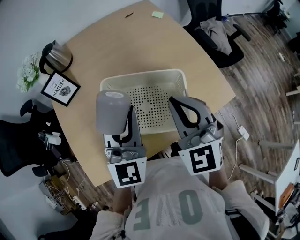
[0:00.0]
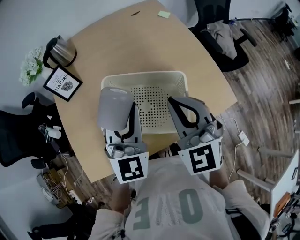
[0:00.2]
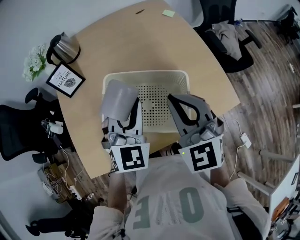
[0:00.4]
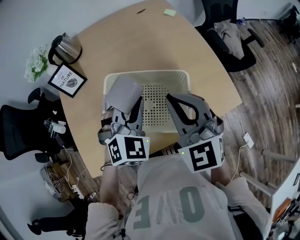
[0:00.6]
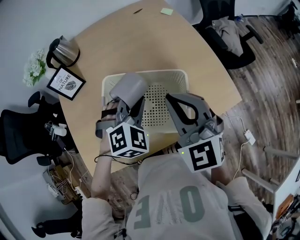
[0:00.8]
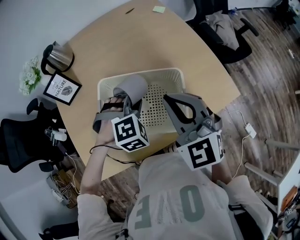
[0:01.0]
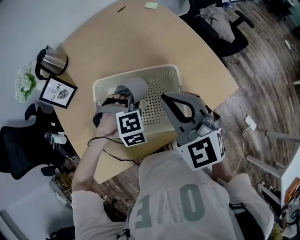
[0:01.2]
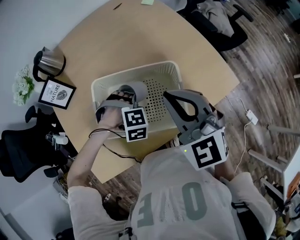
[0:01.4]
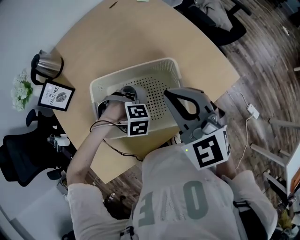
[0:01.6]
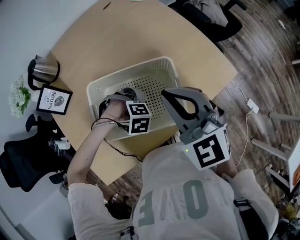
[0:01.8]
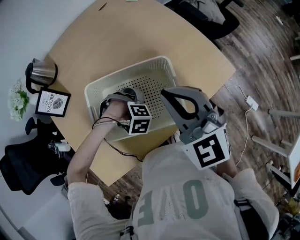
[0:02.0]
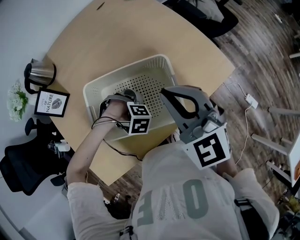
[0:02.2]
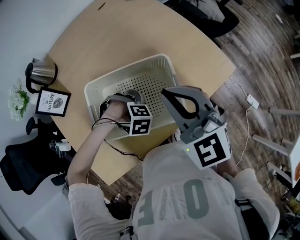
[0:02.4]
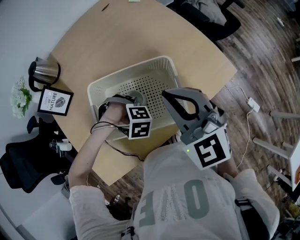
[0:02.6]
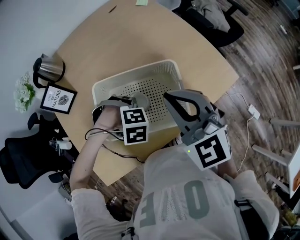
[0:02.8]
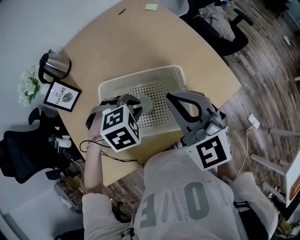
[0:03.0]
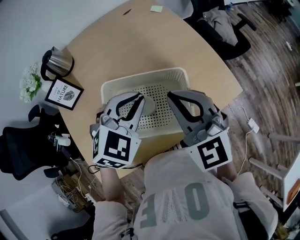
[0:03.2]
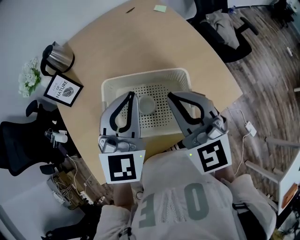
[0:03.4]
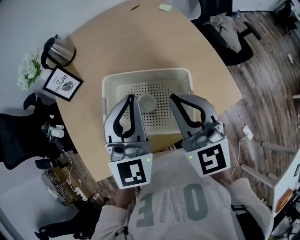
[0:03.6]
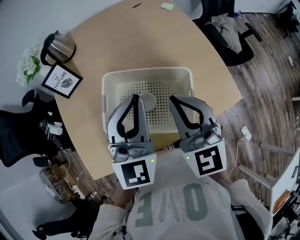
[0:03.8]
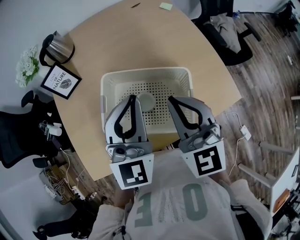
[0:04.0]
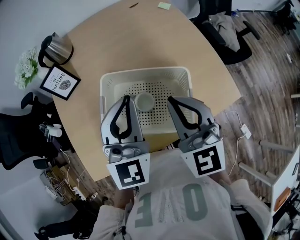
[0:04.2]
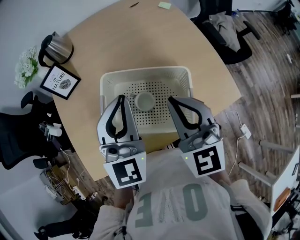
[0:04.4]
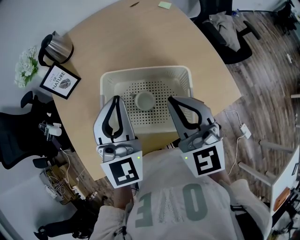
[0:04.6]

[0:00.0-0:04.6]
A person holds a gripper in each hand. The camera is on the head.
0:00.0 to 0:01.6: The left gripper travels downward by approximately 25 cm, and tips its fingers downward by some 80 degrees.
0:01.6 to 0:03.0: The left gripper shifts roughly 15 cm upward, and changes its angle by roughly 30 degrees.
0:03.0 to 0:04.6: The left gripper moves upward, some 15 cm, and points its fingers about 70 degrees further upward.

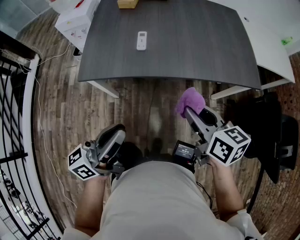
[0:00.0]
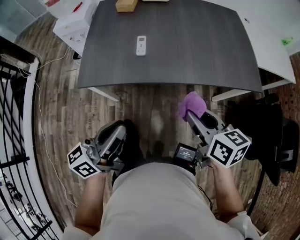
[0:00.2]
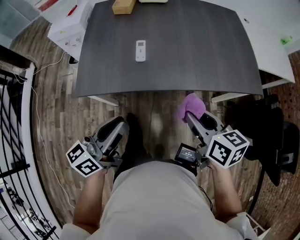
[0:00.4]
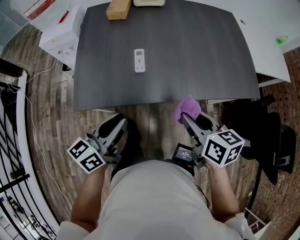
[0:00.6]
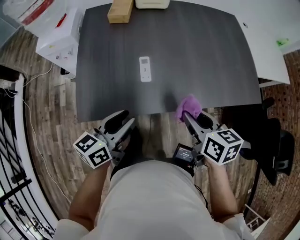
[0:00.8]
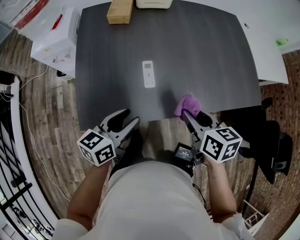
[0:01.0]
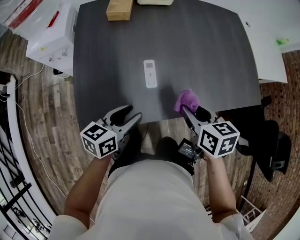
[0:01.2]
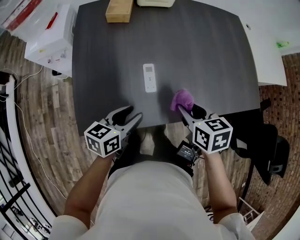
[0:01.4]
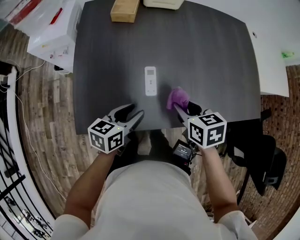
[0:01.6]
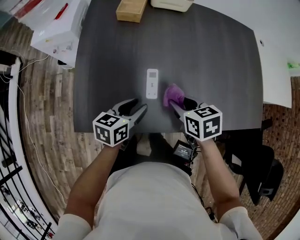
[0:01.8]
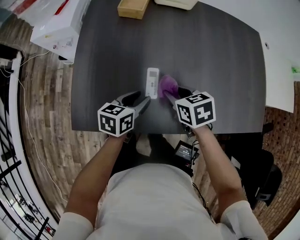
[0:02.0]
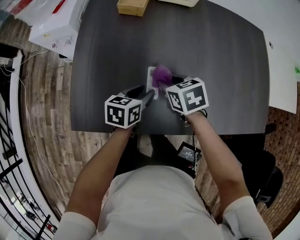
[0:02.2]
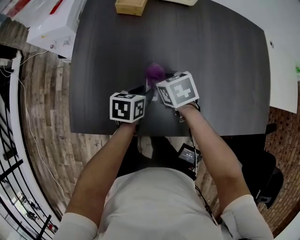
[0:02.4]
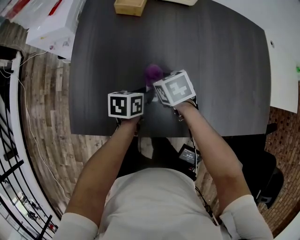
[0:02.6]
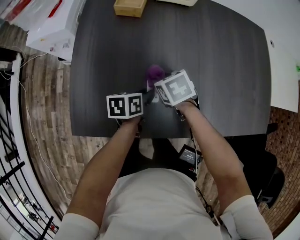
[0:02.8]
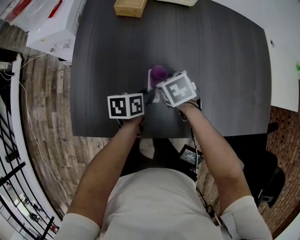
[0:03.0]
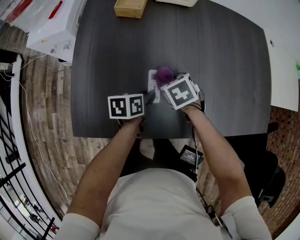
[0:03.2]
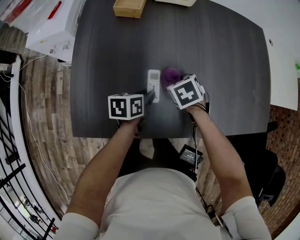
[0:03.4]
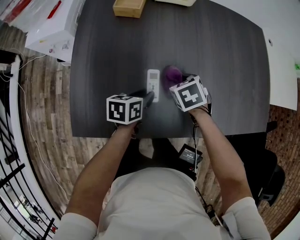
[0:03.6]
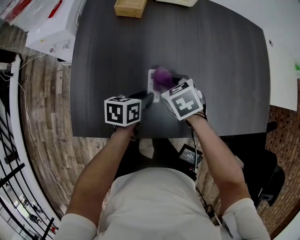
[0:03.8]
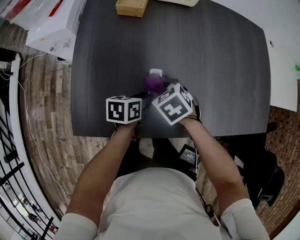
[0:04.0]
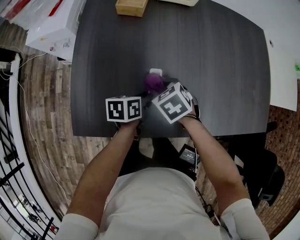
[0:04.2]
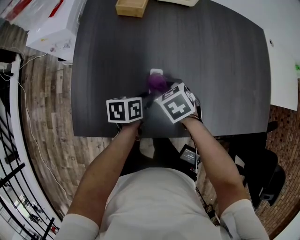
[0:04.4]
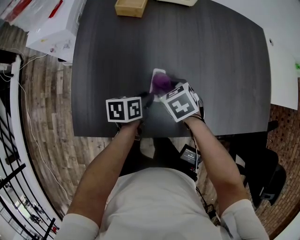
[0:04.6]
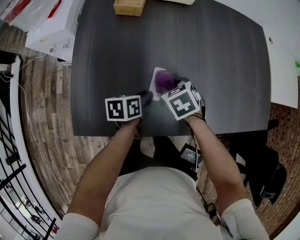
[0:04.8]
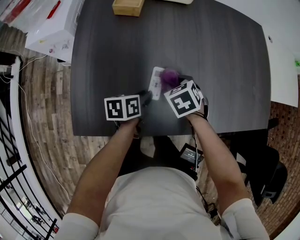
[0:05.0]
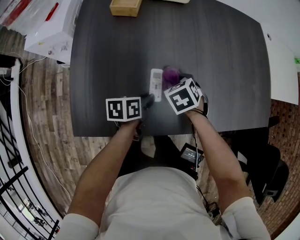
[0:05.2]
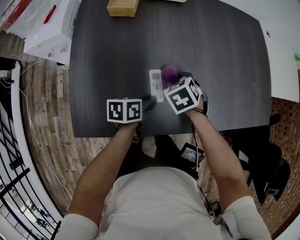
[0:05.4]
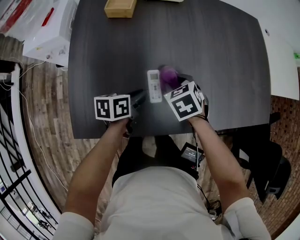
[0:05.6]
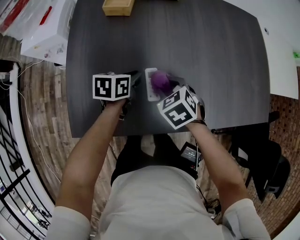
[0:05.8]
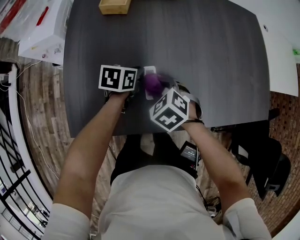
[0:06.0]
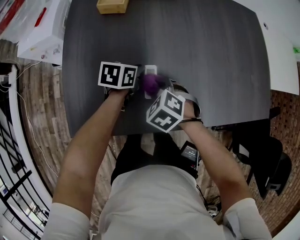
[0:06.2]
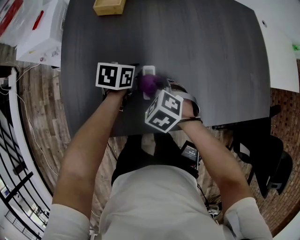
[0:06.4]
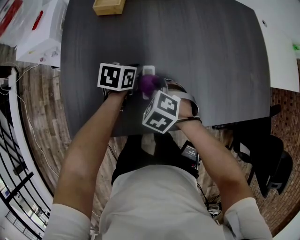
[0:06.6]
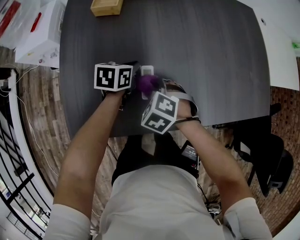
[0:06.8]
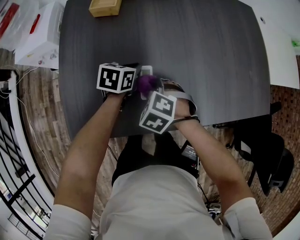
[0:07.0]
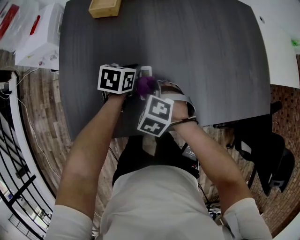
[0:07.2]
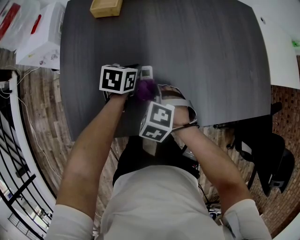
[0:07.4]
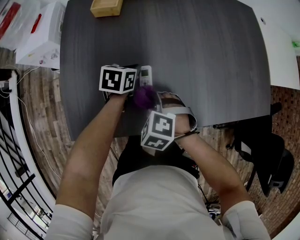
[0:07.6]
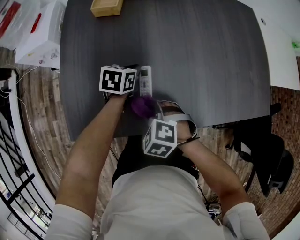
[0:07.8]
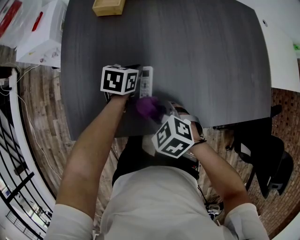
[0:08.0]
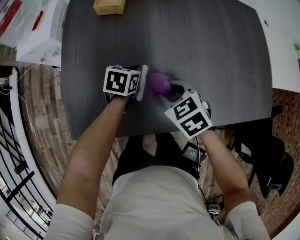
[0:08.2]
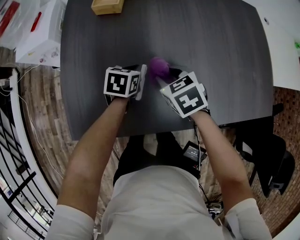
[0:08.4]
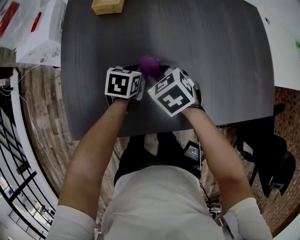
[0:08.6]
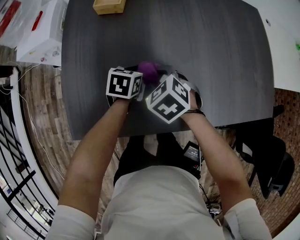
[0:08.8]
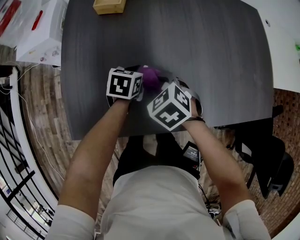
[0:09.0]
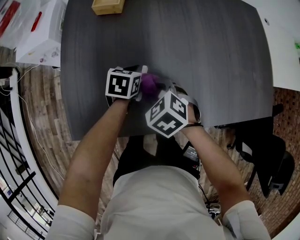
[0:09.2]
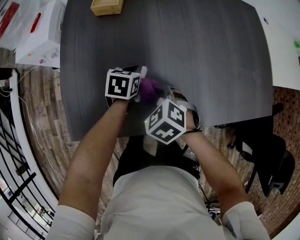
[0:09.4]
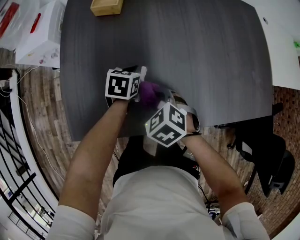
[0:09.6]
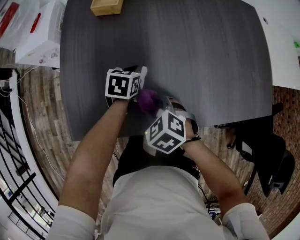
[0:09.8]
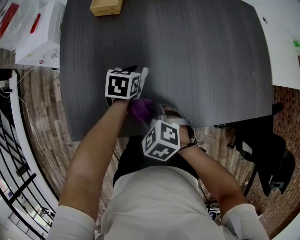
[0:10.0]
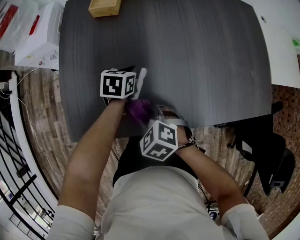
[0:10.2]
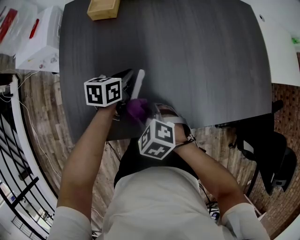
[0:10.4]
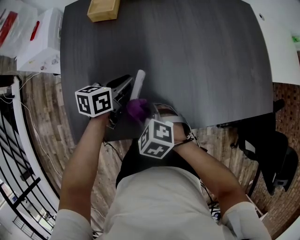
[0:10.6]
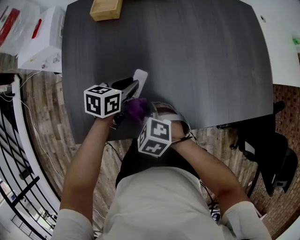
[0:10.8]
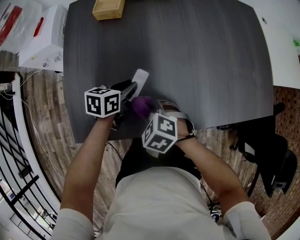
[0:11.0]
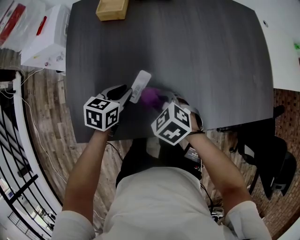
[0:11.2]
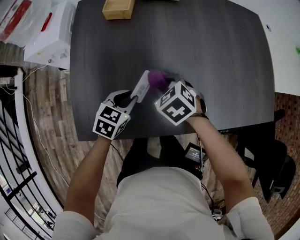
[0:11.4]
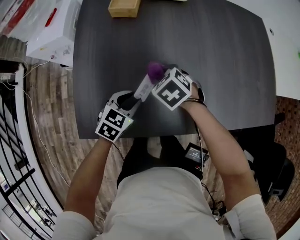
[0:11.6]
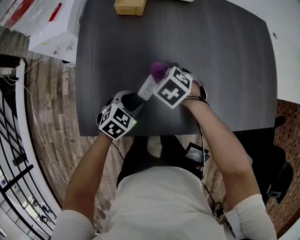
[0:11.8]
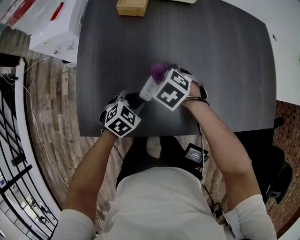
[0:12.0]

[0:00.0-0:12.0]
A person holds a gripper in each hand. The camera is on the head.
0:00.0 to 0:01.6: The right gripper heads forward, to the left and downward, covering approximately 30 cm, and turns by some 30 degrees. Meanwhile the left gripper shifts some 35 cm forward and downward, tips its fingers downward by roughly 40 degrees, and opens.
0:01.6 to 0:03.0: The left gripper travels forward and downward by about 15 cm, and swivels approximately 30 degrees. The right gripper travels forward, downward and to the left by roughly 20 cm, and turns by roughly 30 degrees.
0:04.4 to 0:06.0: The left gripper shifts approximately 10 cm forward, and changes its angle by some 20 degrees.
0:06.0 to 0:07.6: The right gripper shifts approximately 5 cm backward.
0:07.6 to 0:09.0: The right gripper shifts approximately 5 cm forward, and turns by approximately 20 degrees.
0:09.0 to 0:10.4: The right gripper shifts roughly 10 cm backward.
0:10.4 to 0:12.0: The left gripper travels backward by about 10 cm, twists approximately 40 degrees clockwise, seen from behind, and opens up. Meanwhile the right gripper heads forward, covering roughly 15 cm.

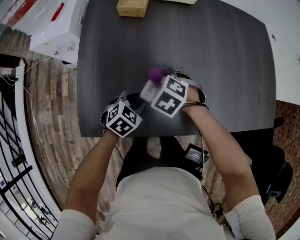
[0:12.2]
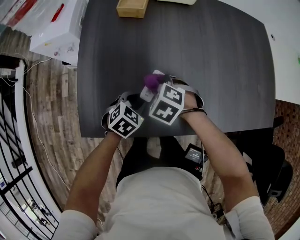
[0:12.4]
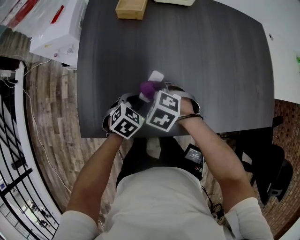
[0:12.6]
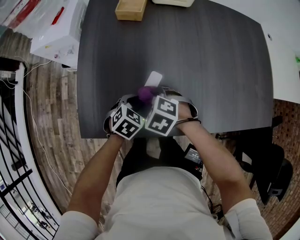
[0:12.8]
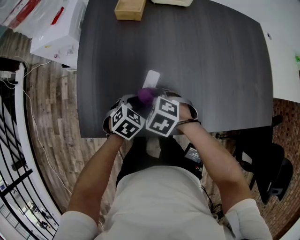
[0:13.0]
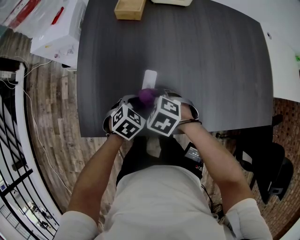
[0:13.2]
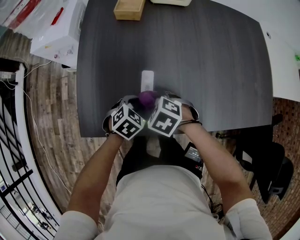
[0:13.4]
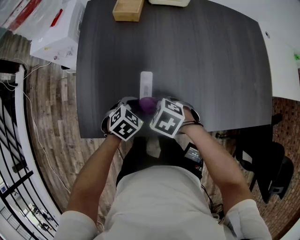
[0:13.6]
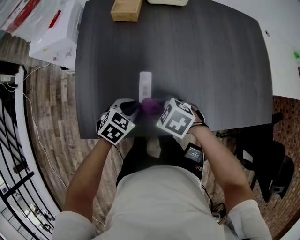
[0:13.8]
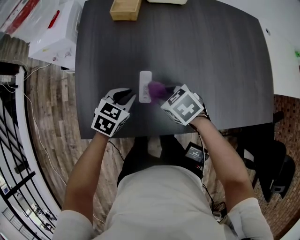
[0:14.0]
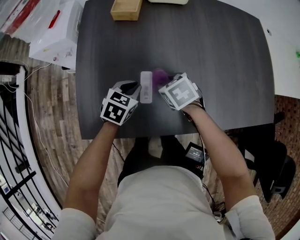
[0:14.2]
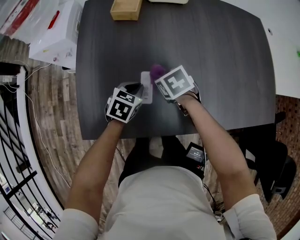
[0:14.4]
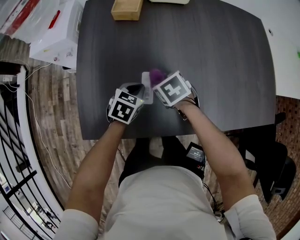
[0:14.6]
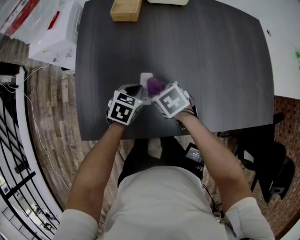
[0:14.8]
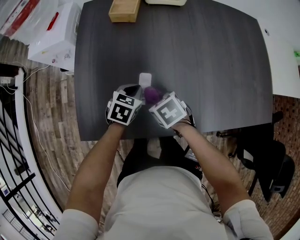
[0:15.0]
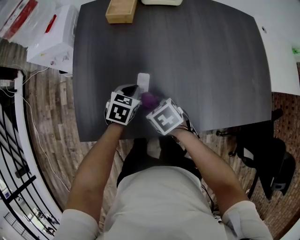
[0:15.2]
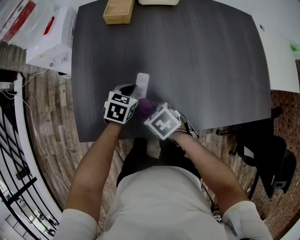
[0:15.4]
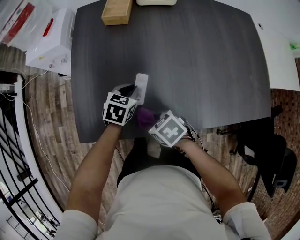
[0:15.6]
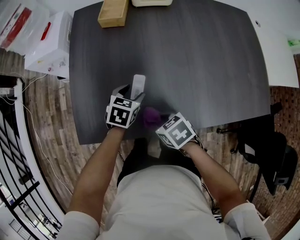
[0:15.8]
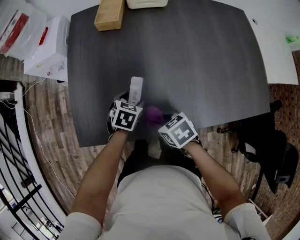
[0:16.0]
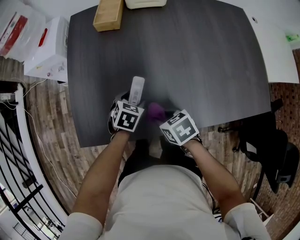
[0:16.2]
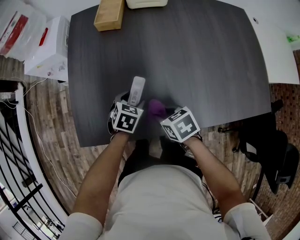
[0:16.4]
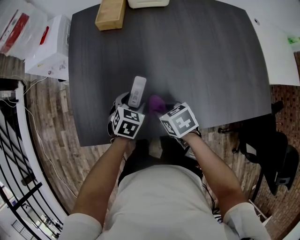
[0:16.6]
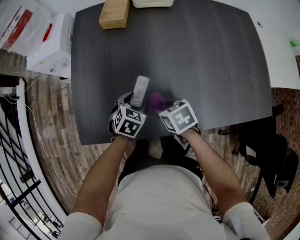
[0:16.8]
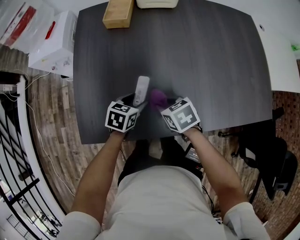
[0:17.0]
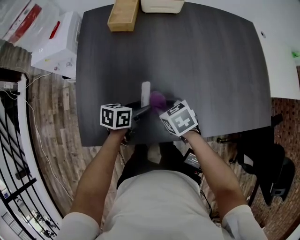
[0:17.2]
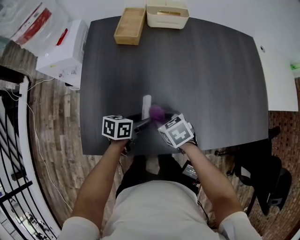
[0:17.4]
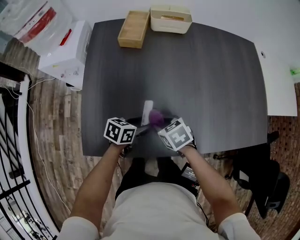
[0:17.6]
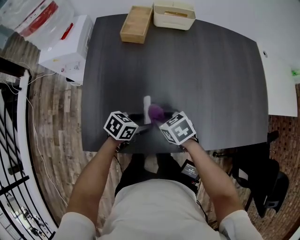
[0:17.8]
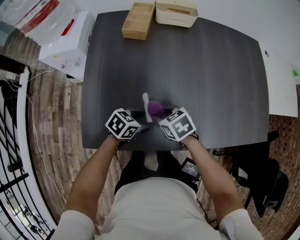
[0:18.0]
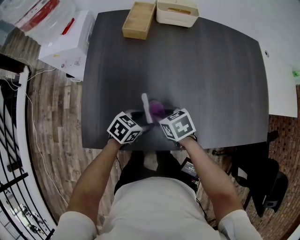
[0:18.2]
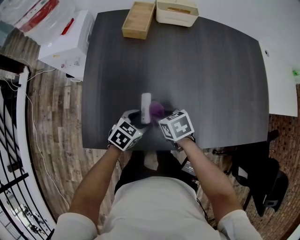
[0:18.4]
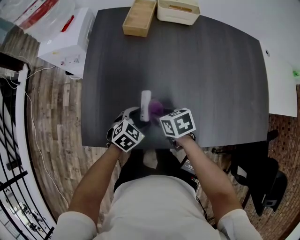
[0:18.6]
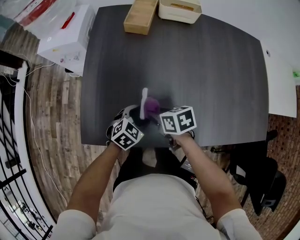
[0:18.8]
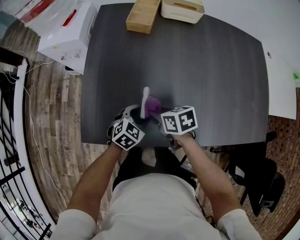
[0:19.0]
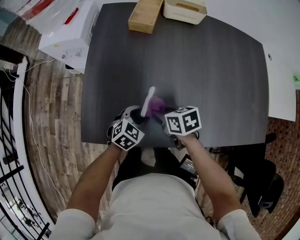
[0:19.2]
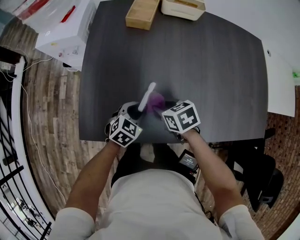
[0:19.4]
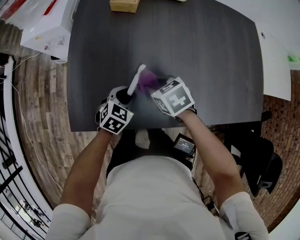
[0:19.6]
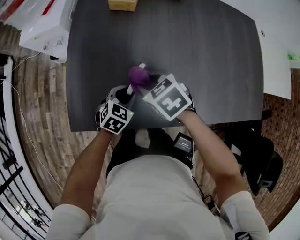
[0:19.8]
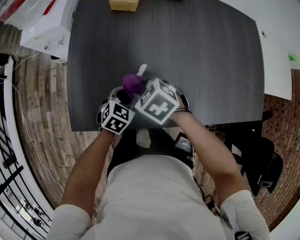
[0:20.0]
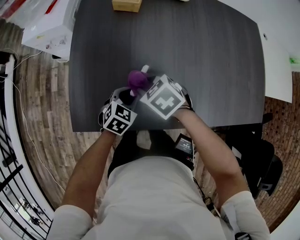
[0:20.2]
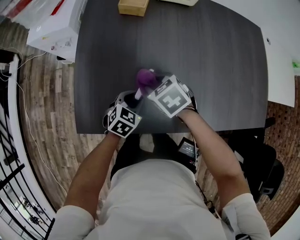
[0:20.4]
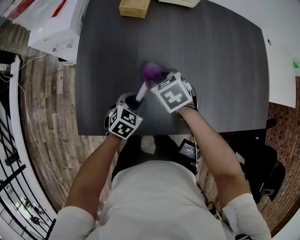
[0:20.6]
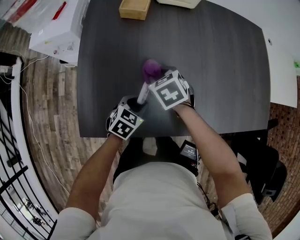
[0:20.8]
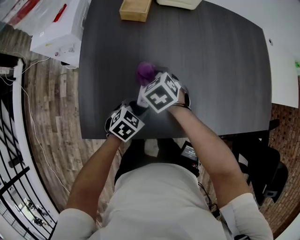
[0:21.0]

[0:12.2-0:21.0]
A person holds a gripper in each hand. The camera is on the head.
0:12.2 to 0:13.6: The right gripper moves approximately 10 cm.
0:13.6 to 0:15.2: The left gripper ends up some 10 cm from where it was, and turns by roughly 20 degrees. The right gripper changes its angle by approximately 30 degrees.
0:15.2 to 0:16.6: The right gripper goes roughly 5 cm to the right. Meanwhile the left gripper opens up.
0:16.6 to 0:18.0: The left gripper swivels about 30 degrees, while the right gripper moves approximately 5 cm.
0:18.0 to 0:19.6: The left gripper rotates about 30 degrees, and closes its fingers.
0:19.6 to 0:21.0: The right gripper ends up about 10 cm from where it was.
